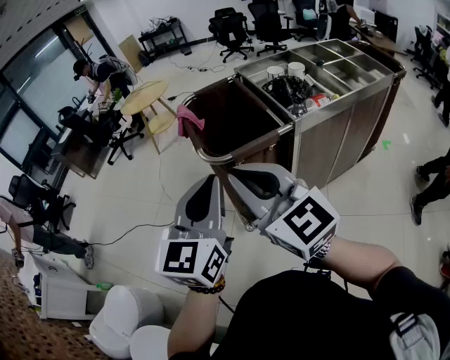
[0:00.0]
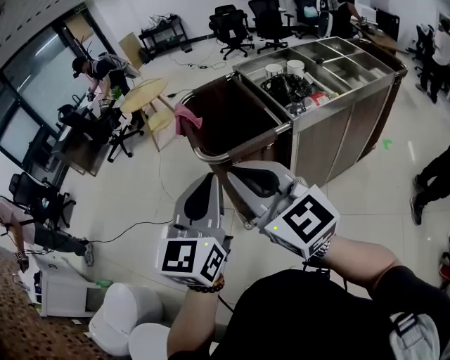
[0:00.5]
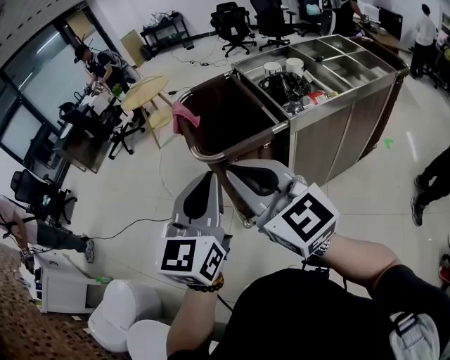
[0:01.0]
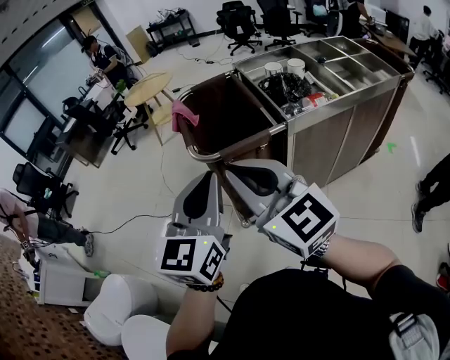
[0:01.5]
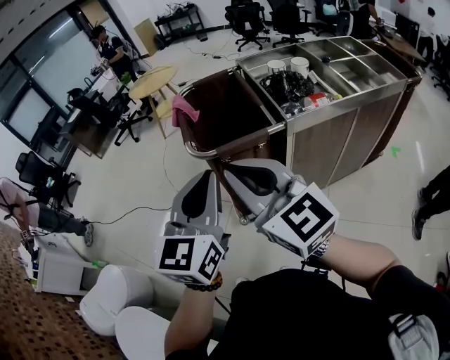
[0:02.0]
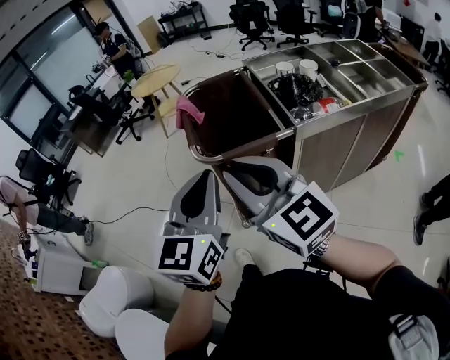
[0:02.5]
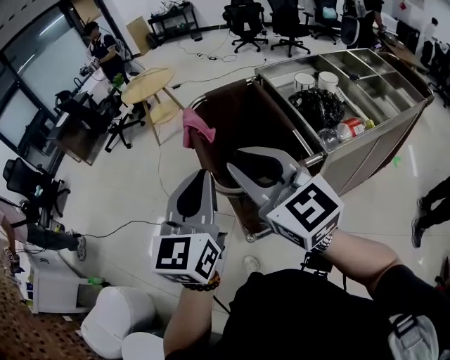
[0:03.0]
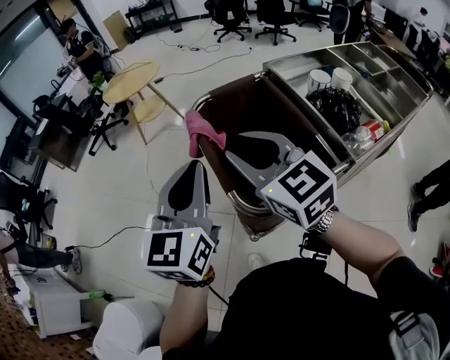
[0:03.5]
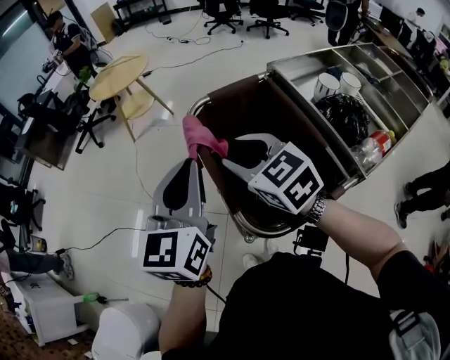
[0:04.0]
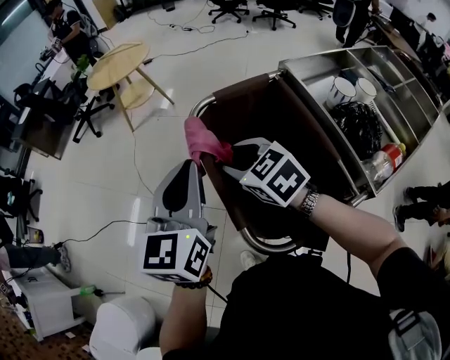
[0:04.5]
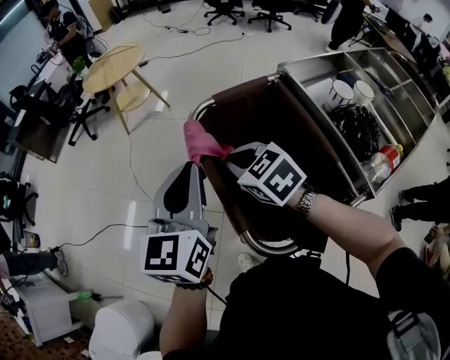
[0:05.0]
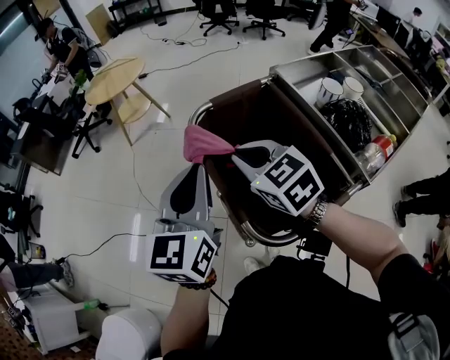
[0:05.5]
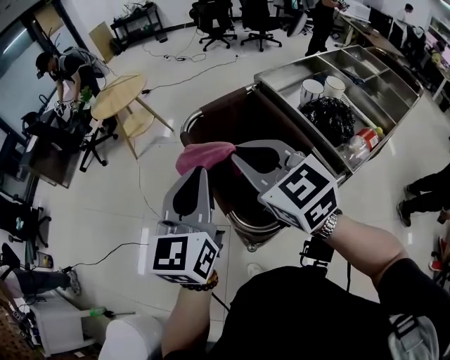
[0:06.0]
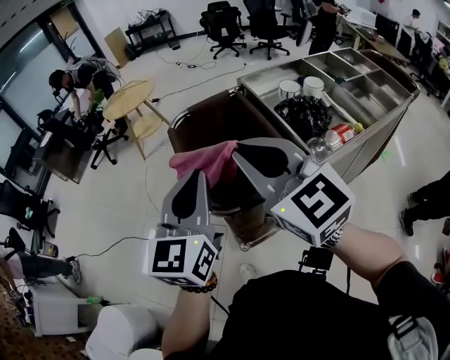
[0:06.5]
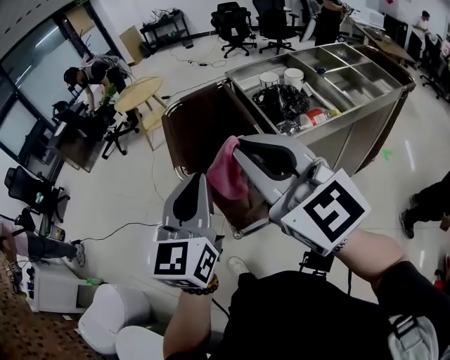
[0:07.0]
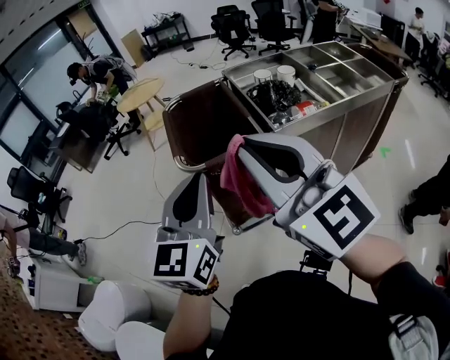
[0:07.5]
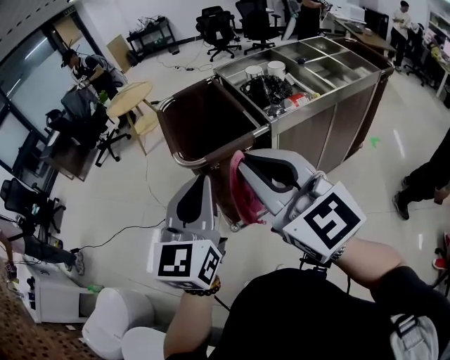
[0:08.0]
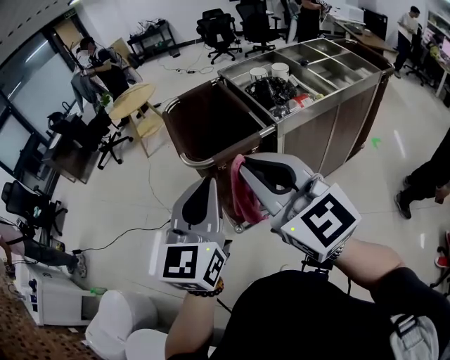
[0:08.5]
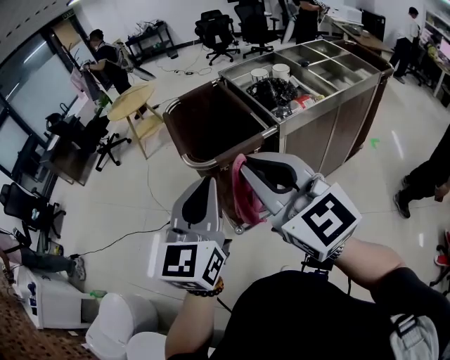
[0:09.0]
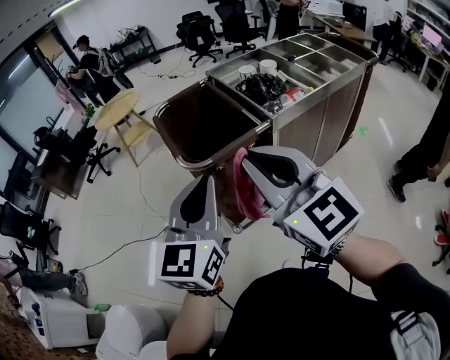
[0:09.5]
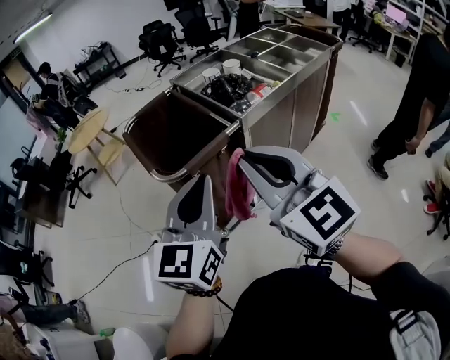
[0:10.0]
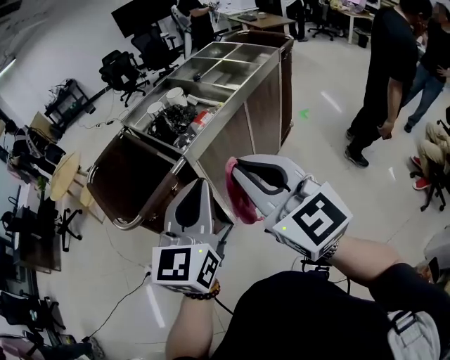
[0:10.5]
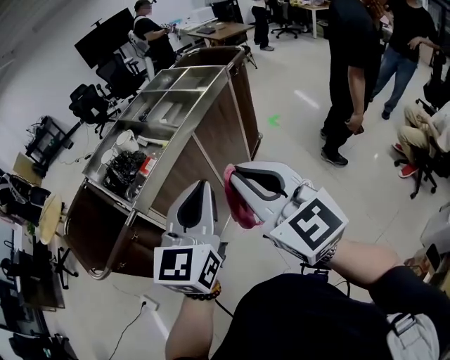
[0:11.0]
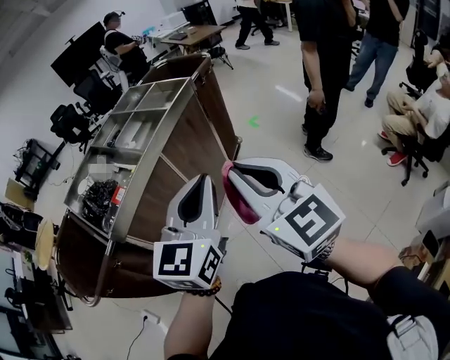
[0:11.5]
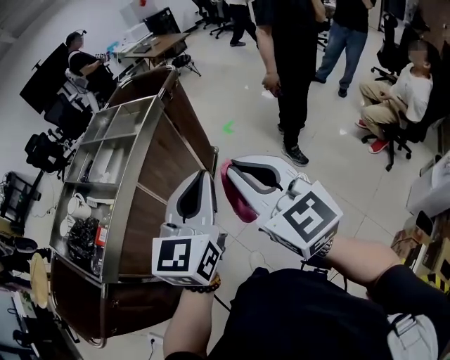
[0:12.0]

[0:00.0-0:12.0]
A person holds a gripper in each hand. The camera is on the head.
0:00.0 to 0:02.0: The two grippers go roughly 5 cm to the right.
0:02.0 to 0:04.0: Both grippers are carried forward and to the left, approximately 50 cm. The right gripper rotates some 30 degrees, and opens.
0:04.0 to 0:06.0: The right gripper moves upward and backward, roughly 10 cm, and closes. Meanwhile the left gripper shifts roughly 5 cm backward.
0:06.0 to 0:08.0: The right gripper heads backward, covering roughly 40 cm; the left gripper is displaced backward and to the right by roughly 40 cm.
0:08.0 to 0:10.0: The grippers stay close to where they were, moving slightly.
0:10.0 to 0:12.0: The pair of grippers is taken some 60 cm. The left gripper turns by roughly 30 degrees; the right gripper rotates approximately 30 degrees.

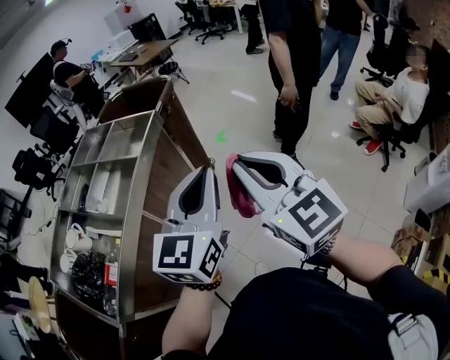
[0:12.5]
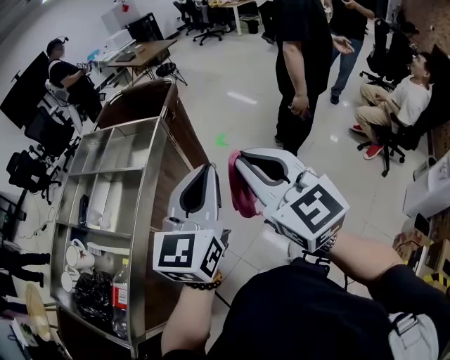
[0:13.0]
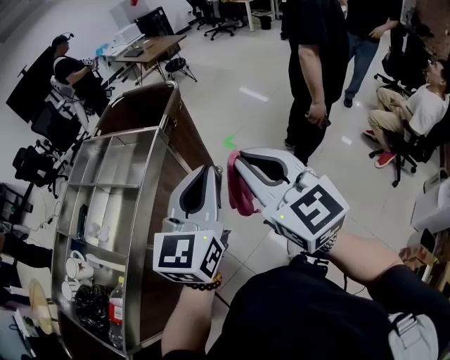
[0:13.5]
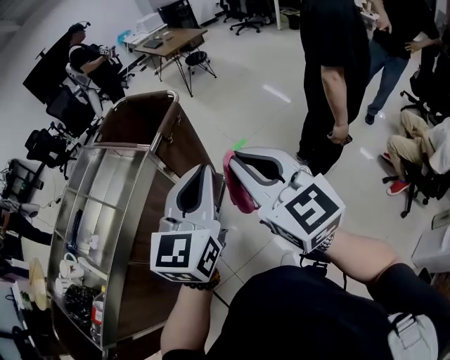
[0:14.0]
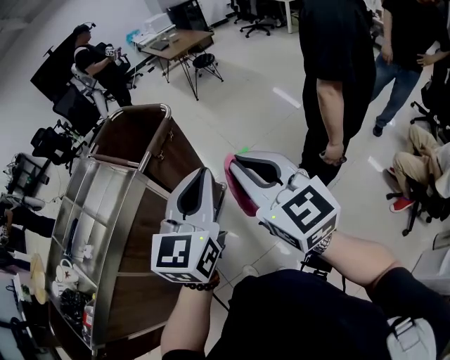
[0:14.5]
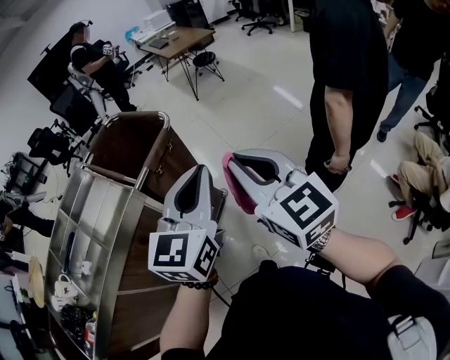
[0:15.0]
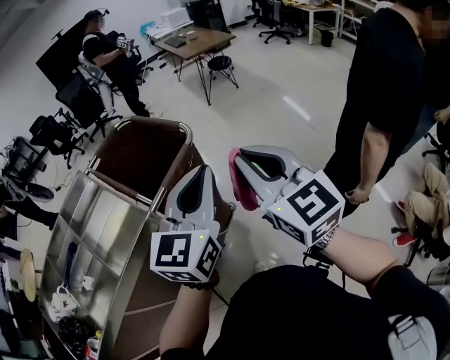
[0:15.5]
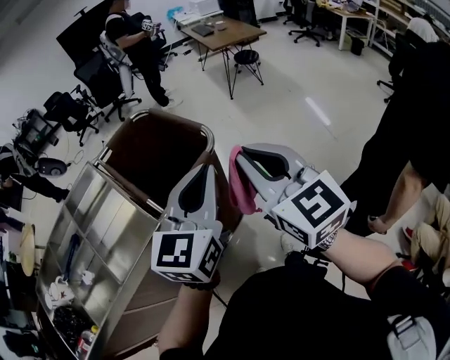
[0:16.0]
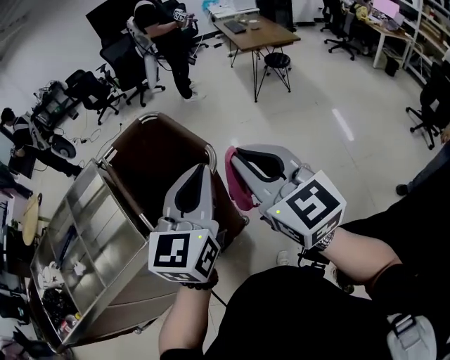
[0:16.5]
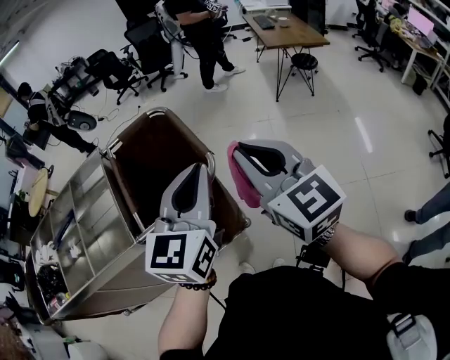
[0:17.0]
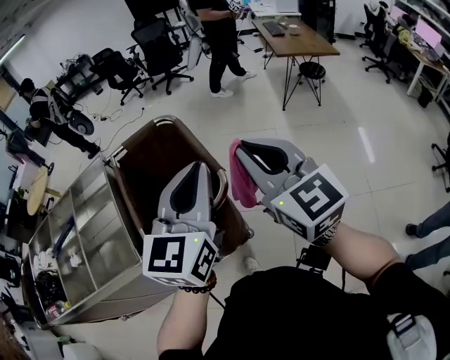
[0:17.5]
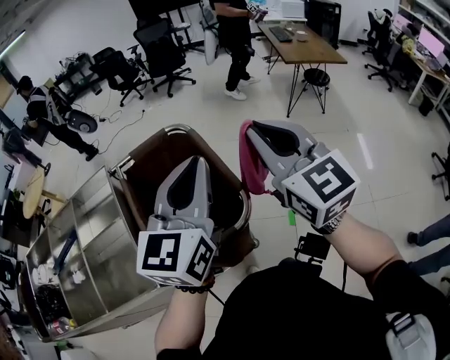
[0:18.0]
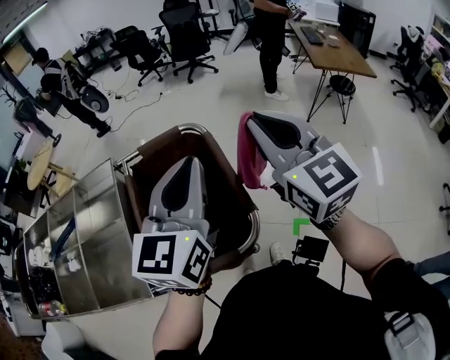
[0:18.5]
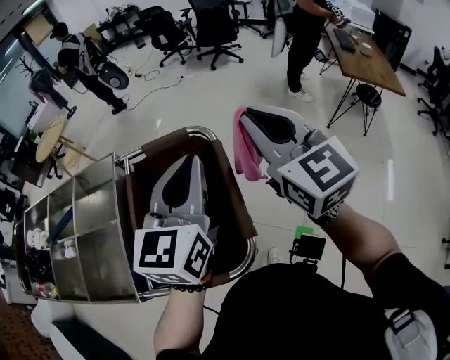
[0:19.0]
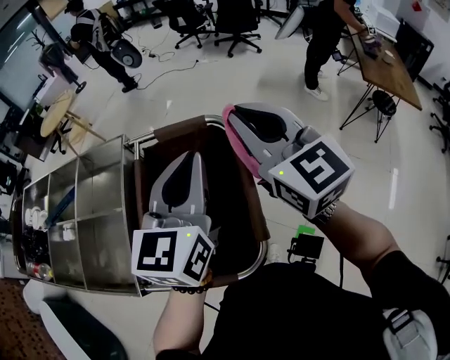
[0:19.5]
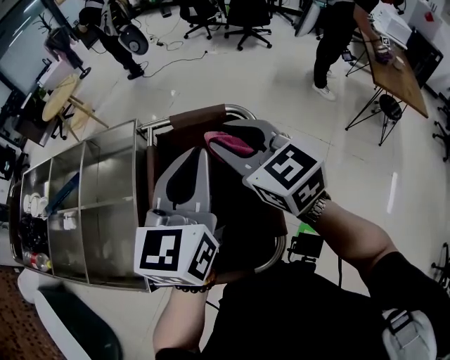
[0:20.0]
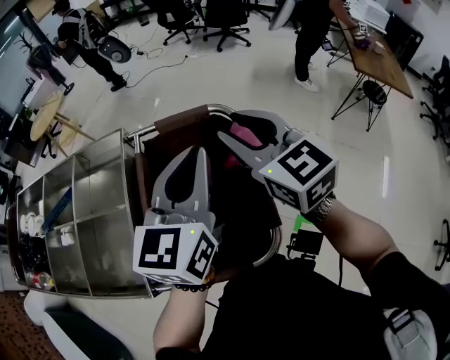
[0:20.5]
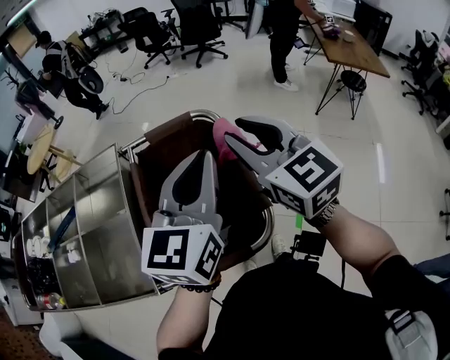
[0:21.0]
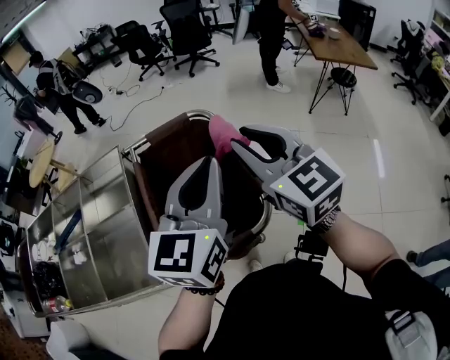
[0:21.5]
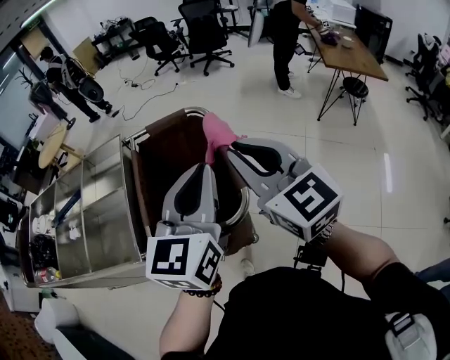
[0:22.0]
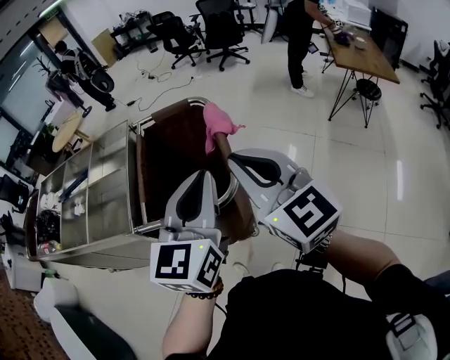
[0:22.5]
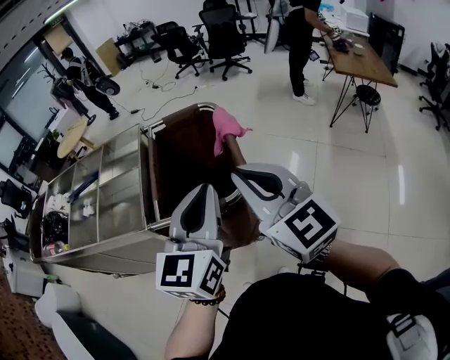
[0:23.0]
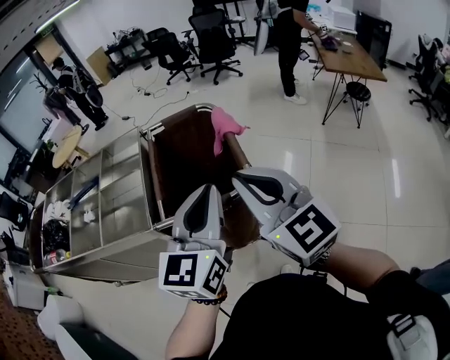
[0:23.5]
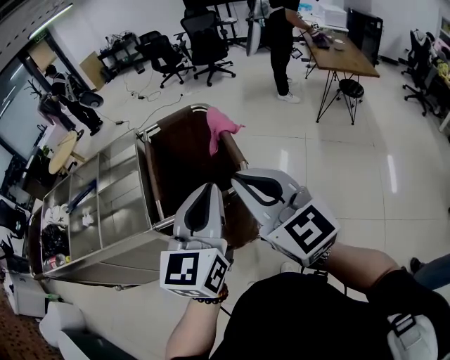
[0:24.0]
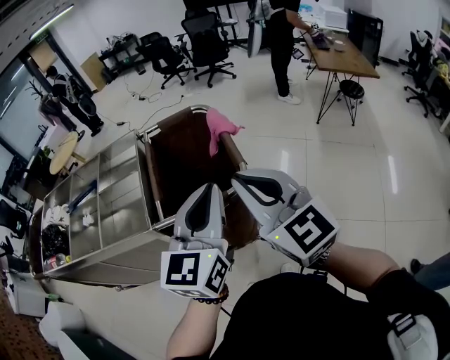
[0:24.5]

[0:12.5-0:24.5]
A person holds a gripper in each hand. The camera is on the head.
0:12.5 to 0:14.5: The grippers both shift forward and to the right by some 35 cm.
0:14.5 to 0:16.5: Both grippers travel together forward, some 35 cm. The left gripper changes its angle by some 20 degrees; the right gripper swivels about 20 degrees.
0:16.5 to 0:18.5: The two grippers go some 25 cm forward. The left gripper changes its angle by roughly 20 degrees.
0:18.5 to 0:20.5: The right gripper travels forward, to the left and downward by approximately 20 cm, turns by some 20 degrees, and opens its fingers, while the left gripper is displaced forward and downward by approximately 15 cm.
0:20.5 to 0:22.5: Both grippers move backward, some 30 cm. The right gripper closes.
0:22.5 to 0:24.5: The grippers both shift backward and to the left by about 10 cm.

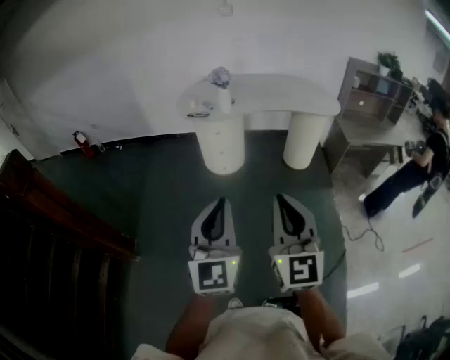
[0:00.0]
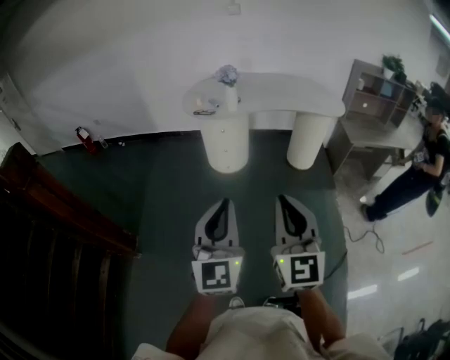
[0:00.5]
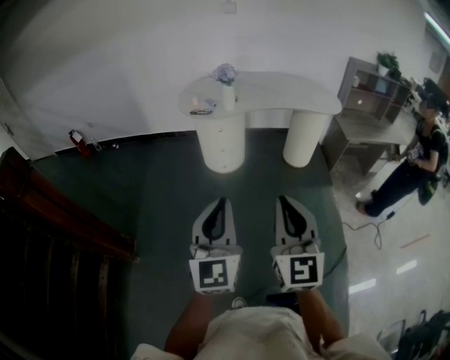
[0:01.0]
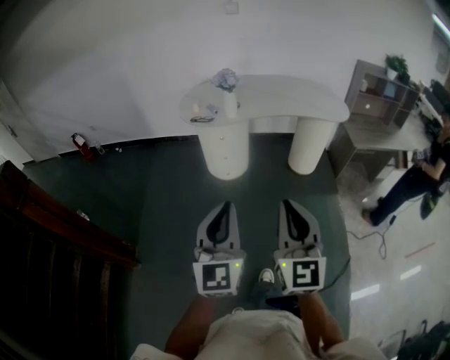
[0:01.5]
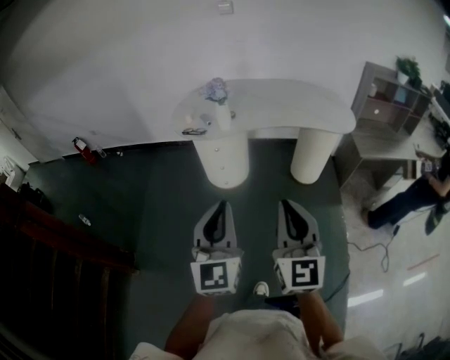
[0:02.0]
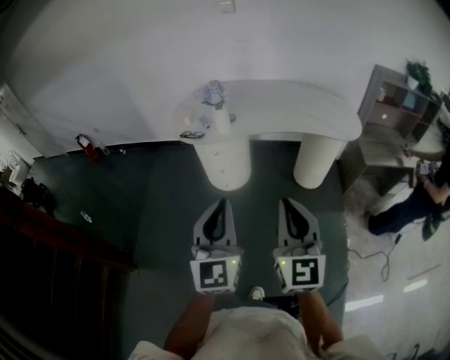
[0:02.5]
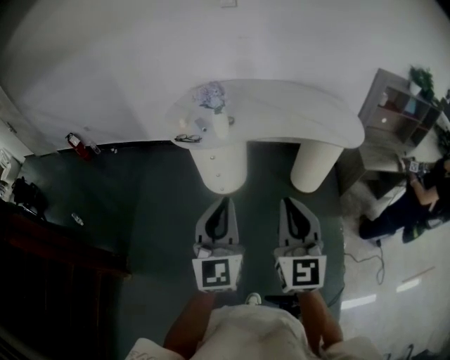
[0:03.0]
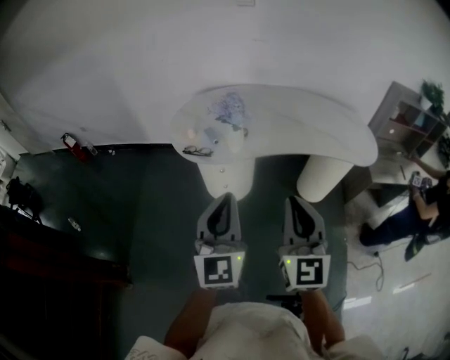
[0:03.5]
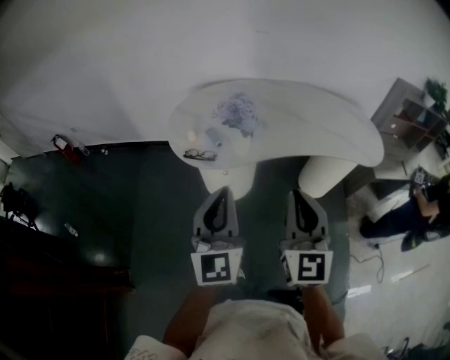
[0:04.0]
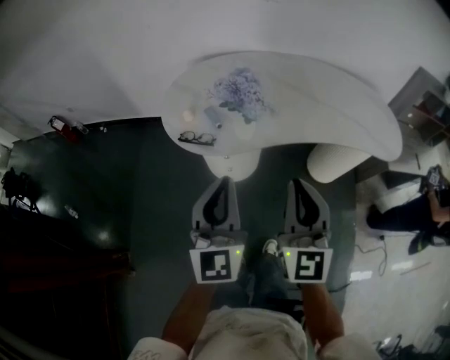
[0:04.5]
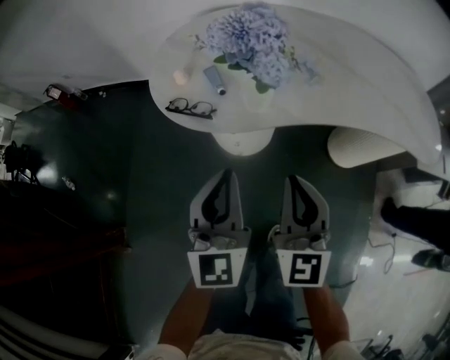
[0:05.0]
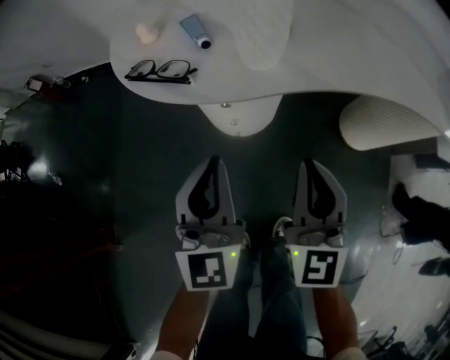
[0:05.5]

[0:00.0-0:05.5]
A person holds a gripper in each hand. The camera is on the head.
0:00.0 to 0:02.0: The grippers both shift forward by approximately 20 cm.
0:02.0 to 0:03.5: The two grippers go about 25 cm forward.
0:03.5 to 0:05.5: The grippers both shift downward and forward by roughly 40 cm.
